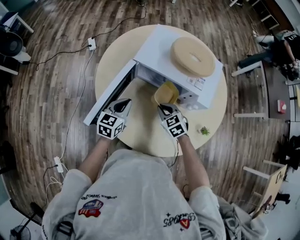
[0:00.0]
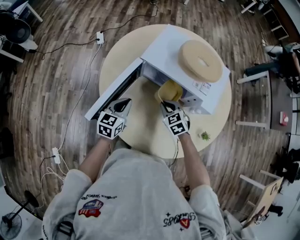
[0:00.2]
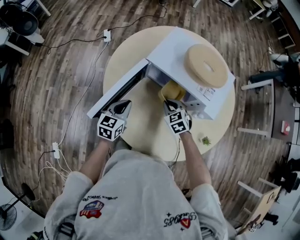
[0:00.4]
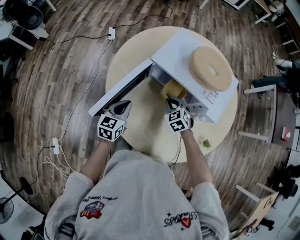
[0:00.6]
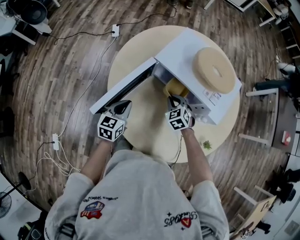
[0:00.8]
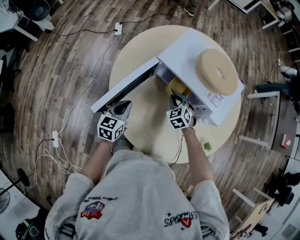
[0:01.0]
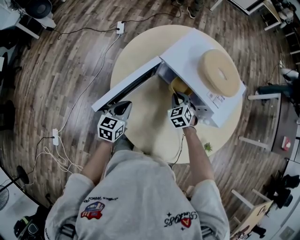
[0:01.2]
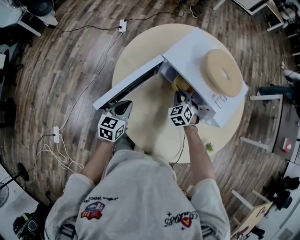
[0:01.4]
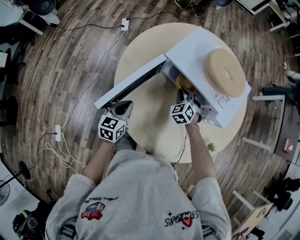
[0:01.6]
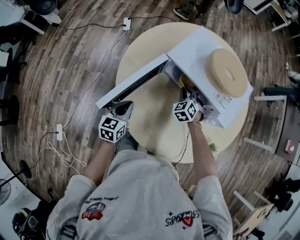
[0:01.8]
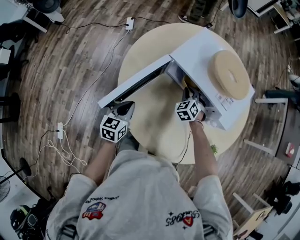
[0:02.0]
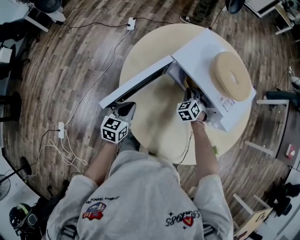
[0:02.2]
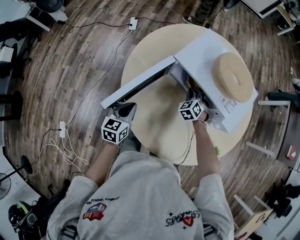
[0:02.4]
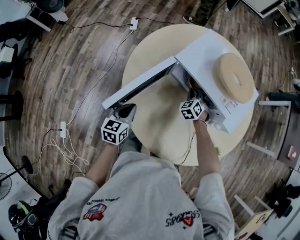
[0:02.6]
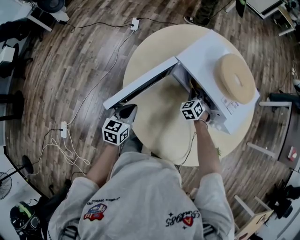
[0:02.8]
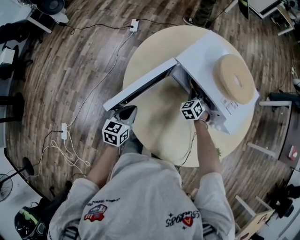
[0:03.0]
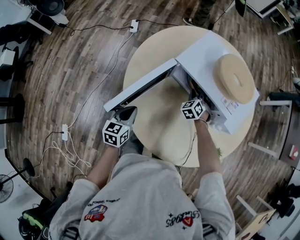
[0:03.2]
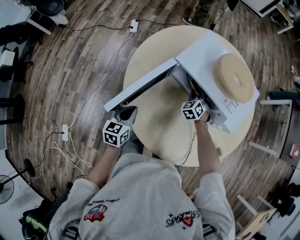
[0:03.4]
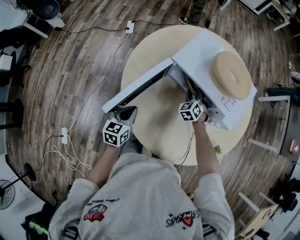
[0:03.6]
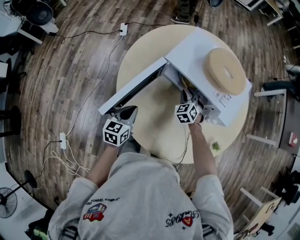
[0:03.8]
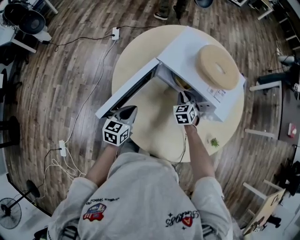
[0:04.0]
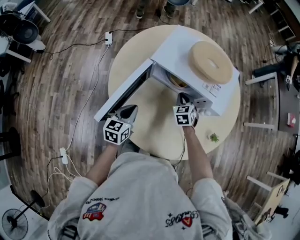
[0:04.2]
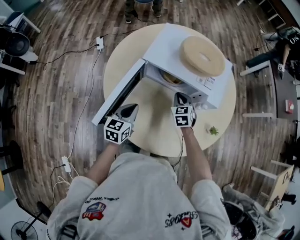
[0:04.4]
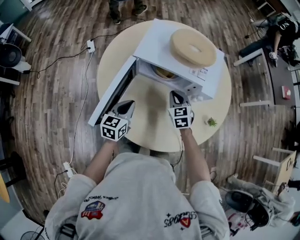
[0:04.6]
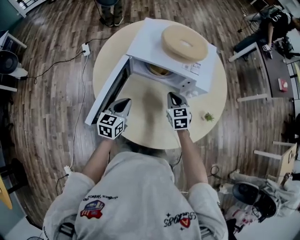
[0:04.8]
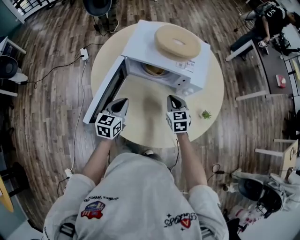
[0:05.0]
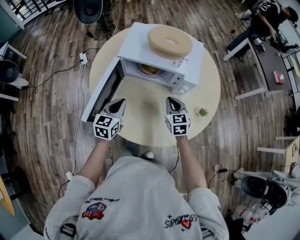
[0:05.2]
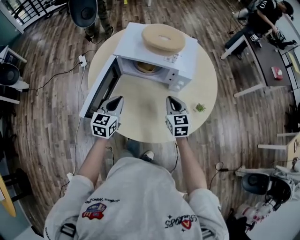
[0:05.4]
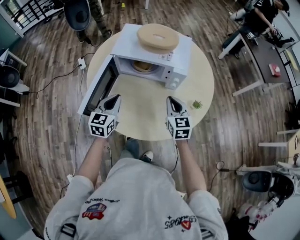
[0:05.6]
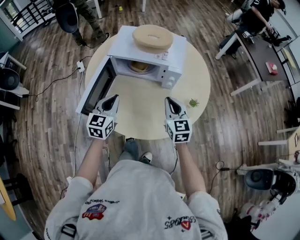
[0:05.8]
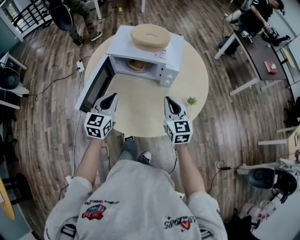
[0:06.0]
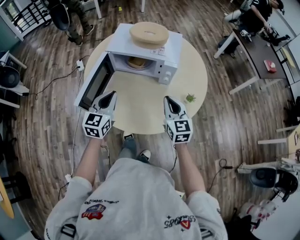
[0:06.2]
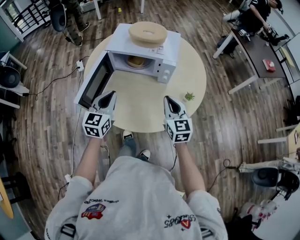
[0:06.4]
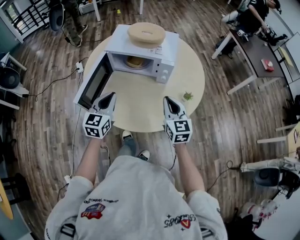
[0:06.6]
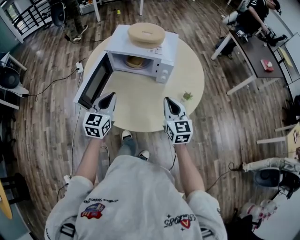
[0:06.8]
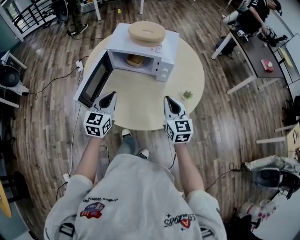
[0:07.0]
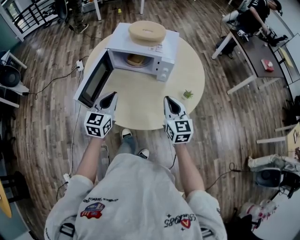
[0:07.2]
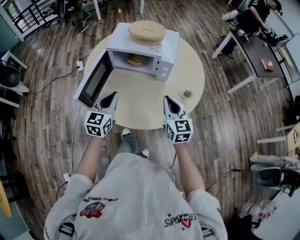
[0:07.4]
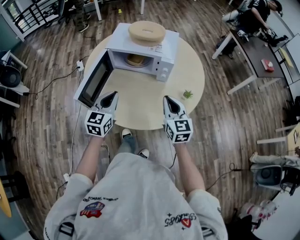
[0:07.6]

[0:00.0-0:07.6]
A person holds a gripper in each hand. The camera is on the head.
0:00.0 to 0:01.6: The left gripper heads to the left, covering approximately 10 cm, and rotates some 20 degrees. The right gripper travels forward by about 10 cm, and rotates about 30 degrees.
0:01.6 to 0:03.0: The right gripper shifts by approximately 5 cm.
0:03.0 to 0:04.6: The left gripper is displaced to the right and forward by approximately 10 cm, and swivels about 20 degrees; the right gripper is displaced backward, upward and to the right by approximately 15 cm, and changes its angle by approximately 40 degrees.
0:04.6 to 0:06.0: The right gripper shifts about 30 cm backward, upward and to the right, and changes its angle by approximately 30 degrees; the left gripper heads upward, backward and to the right, covering roughly 20 cm.
0:06.0 to 0:07.6: The grippers both shift backward by approximately 5 cm.

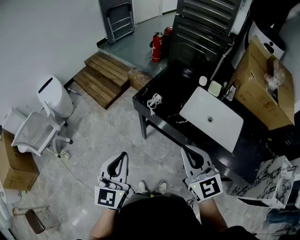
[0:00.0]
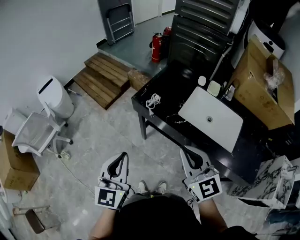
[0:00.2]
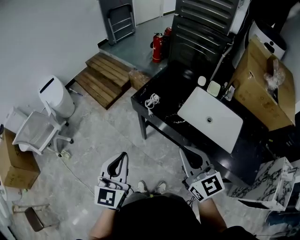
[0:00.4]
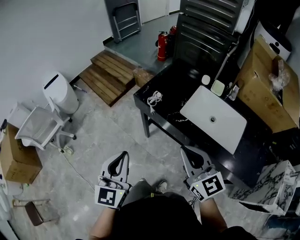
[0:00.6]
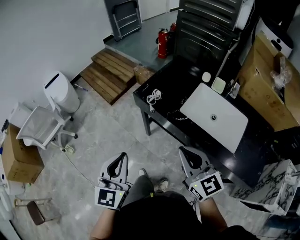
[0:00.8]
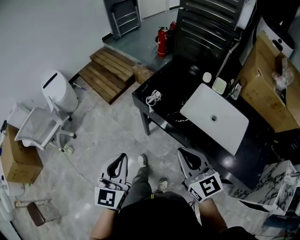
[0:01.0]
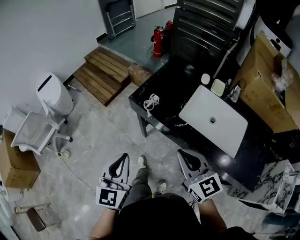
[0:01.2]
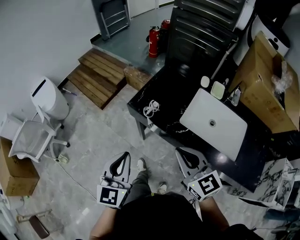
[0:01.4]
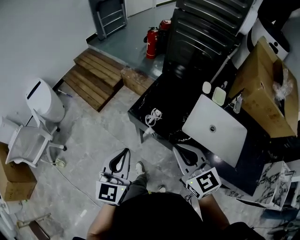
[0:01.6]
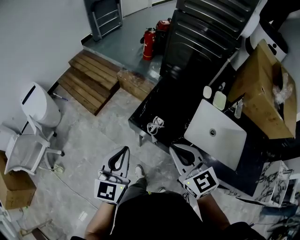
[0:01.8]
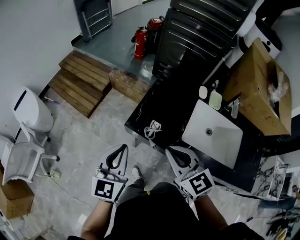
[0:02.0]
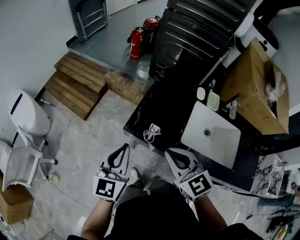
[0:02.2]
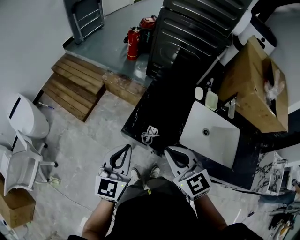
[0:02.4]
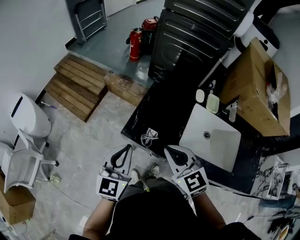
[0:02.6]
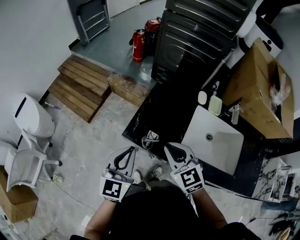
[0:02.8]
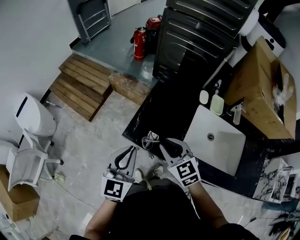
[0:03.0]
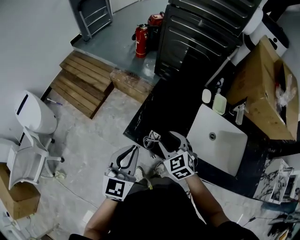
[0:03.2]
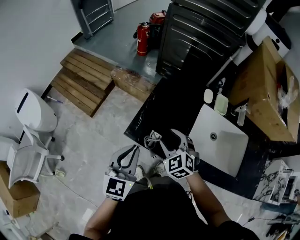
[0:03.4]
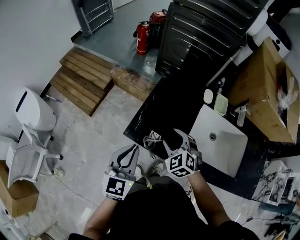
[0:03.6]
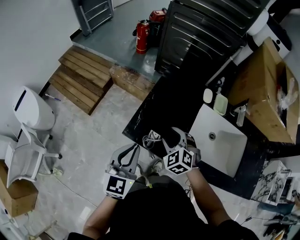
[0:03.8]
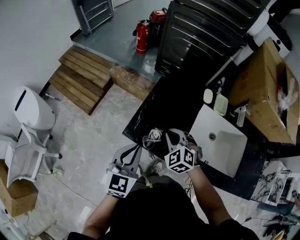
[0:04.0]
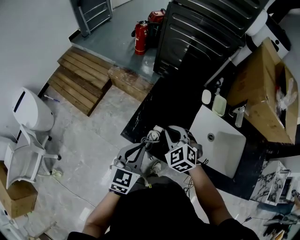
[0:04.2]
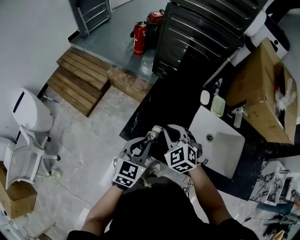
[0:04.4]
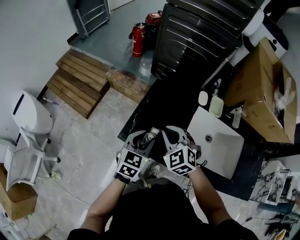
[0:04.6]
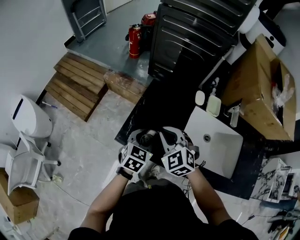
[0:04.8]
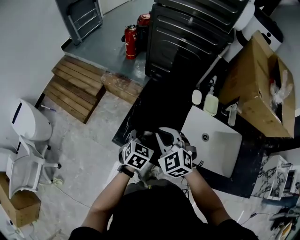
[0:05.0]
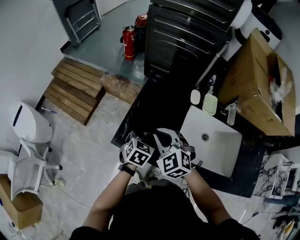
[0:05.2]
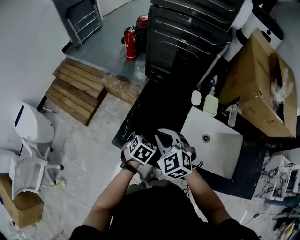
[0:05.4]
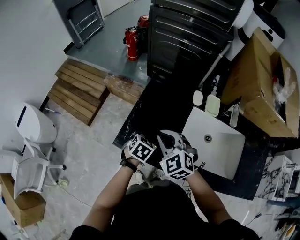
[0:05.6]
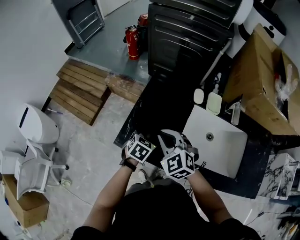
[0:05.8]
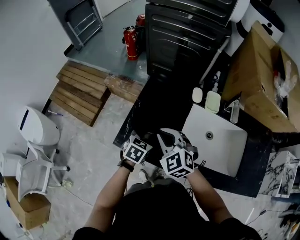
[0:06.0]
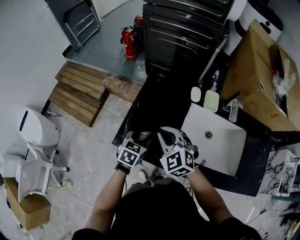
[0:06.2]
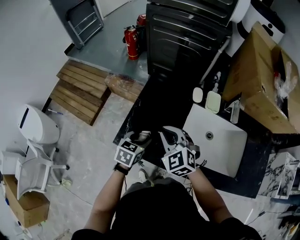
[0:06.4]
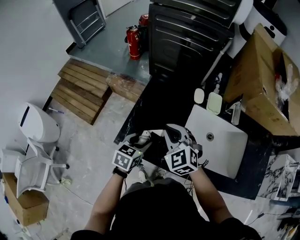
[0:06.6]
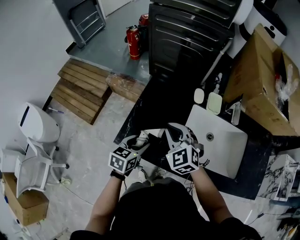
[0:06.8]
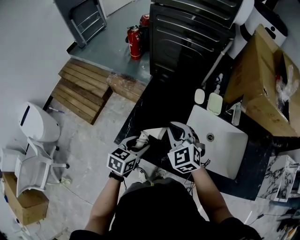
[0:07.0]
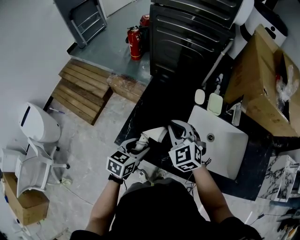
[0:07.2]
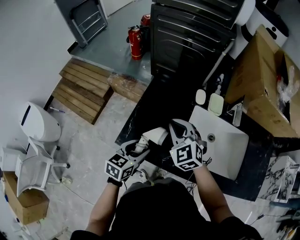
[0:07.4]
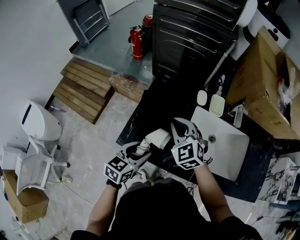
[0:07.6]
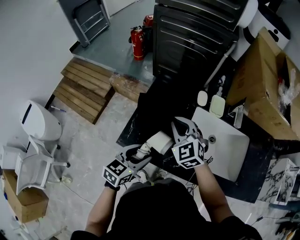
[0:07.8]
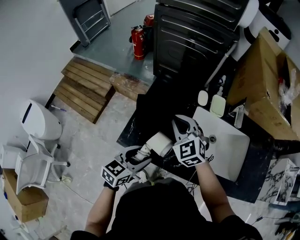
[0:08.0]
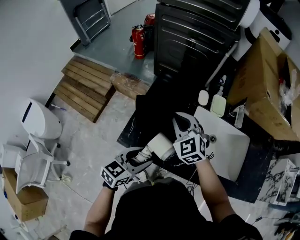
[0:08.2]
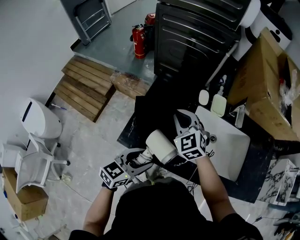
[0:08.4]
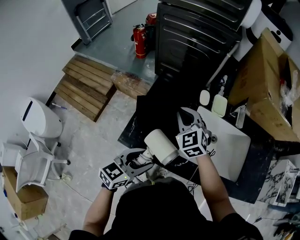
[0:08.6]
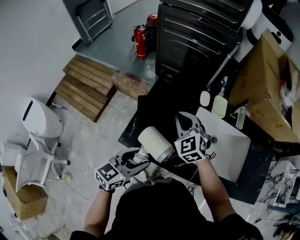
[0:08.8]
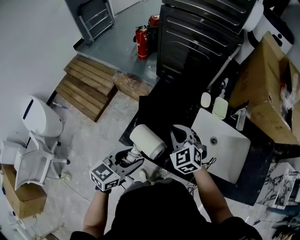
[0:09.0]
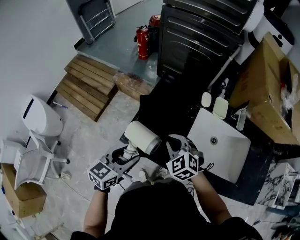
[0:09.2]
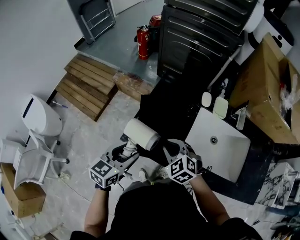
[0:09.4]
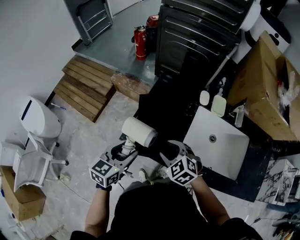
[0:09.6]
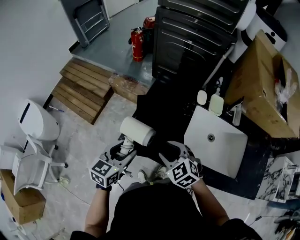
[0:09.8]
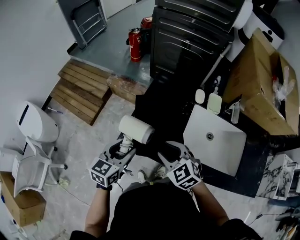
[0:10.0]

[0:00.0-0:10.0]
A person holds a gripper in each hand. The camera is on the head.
0:00.0 to 0:01.4: The left gripper moves forward, some 10 cm. Meanwhile the right gripper heads forward and downward, covering approximately 10 cm.
0:01.4 to 0:02.8: The two grippers go approximately 20 cm forward.
0:02.8 to 0:04.2: The right gripper is displaced forward and downward by about 10 cm, rotates about 30 degrees, and opens and closes again, while the left gripper heads downward, covering some 5 cm.
0:04.2 to 0:05.8: The left gripper goes approximately 15 cm downward, forward and to the right, points its fingers about 30 degrees further downward, and opens up.
0:05.8 to 0:07.2: The left gripper moves upward and backward, roughly 10 cm, and turns by some 20 degrees; the right gripper shifts by some 5 cm.
0:07.2 to 0:08.6: The right gripper heads forward, covering approximately 5 cm; the left gripper is displaced upward and backward by some 10 cm, and changes its angle by approximately 20 degrees.
0:08.6 to 0:10.0: The left gripper goes approximately 10 cm to the left, and turns by about 20 degrees. Meanwhile the right gripper is displaced backward by some 15 cm, swivels roughly 20 degrees, and opens.

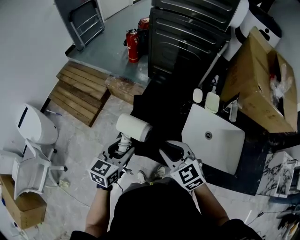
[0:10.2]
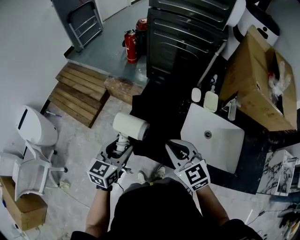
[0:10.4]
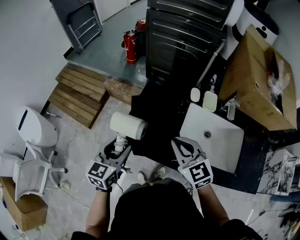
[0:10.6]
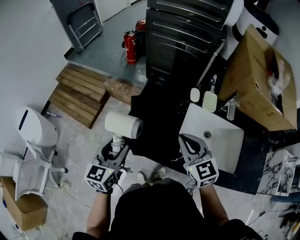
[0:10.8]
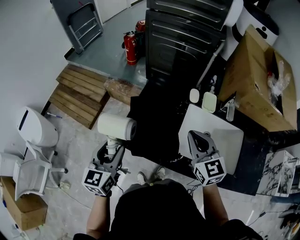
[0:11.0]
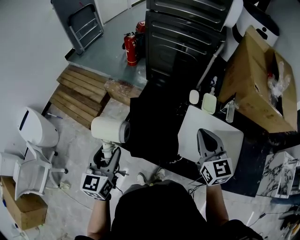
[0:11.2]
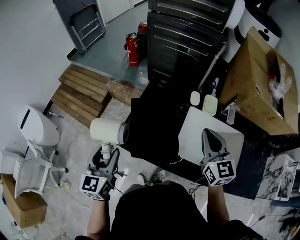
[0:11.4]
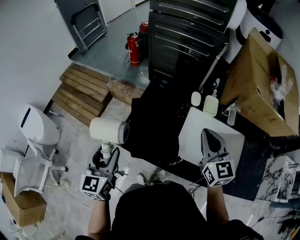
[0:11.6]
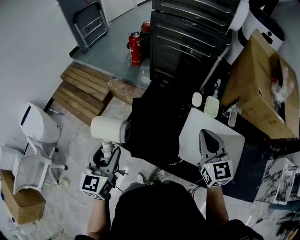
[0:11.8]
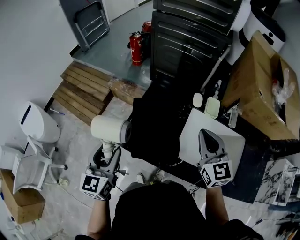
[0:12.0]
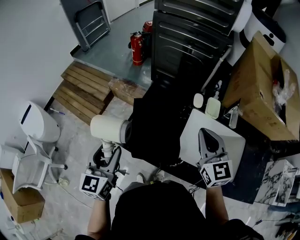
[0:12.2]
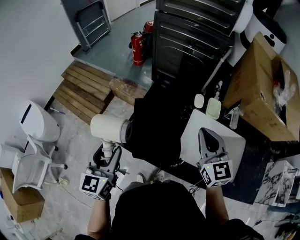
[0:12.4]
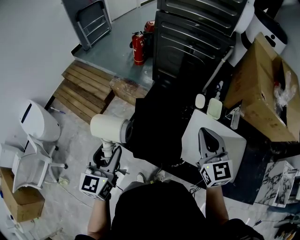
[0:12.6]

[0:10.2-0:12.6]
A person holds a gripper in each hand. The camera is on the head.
0:10.2 to 0:11.4: The right gripper shifts approximately 20 cm to the right and upward, swivels about 30 degrees, and closes. The left gripper travels upward by about 5 cm, and rotates approximately 20 degrees.
0:11.4 to 0:12.6: The grippers move only a little.

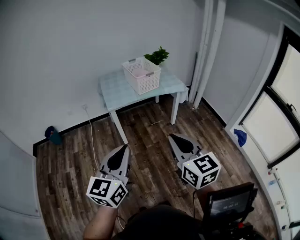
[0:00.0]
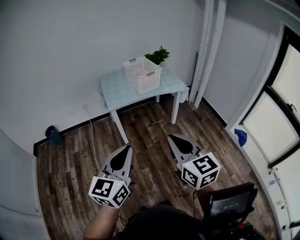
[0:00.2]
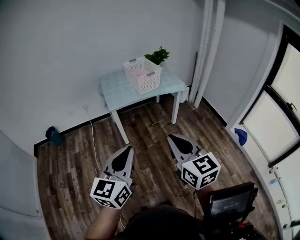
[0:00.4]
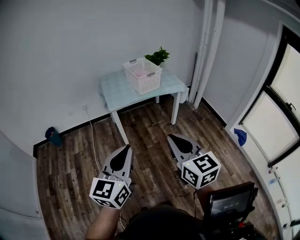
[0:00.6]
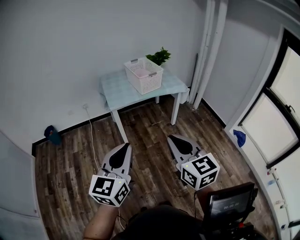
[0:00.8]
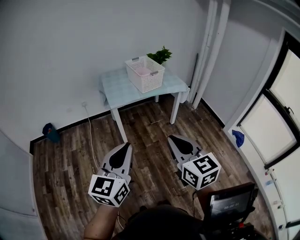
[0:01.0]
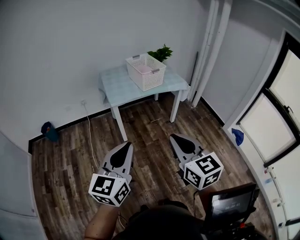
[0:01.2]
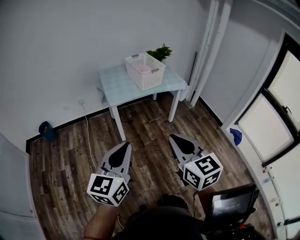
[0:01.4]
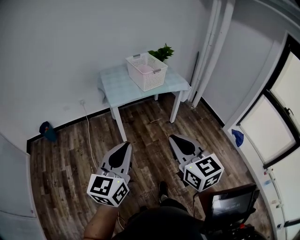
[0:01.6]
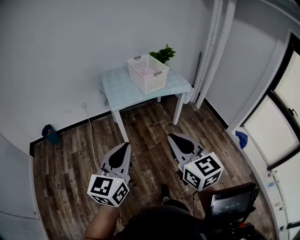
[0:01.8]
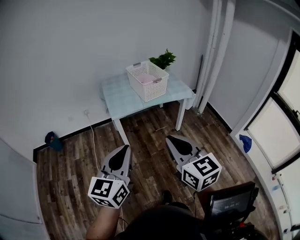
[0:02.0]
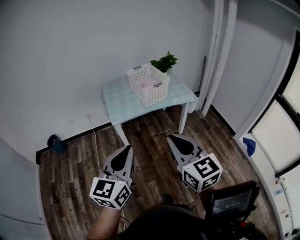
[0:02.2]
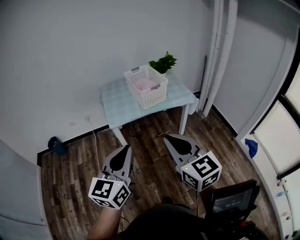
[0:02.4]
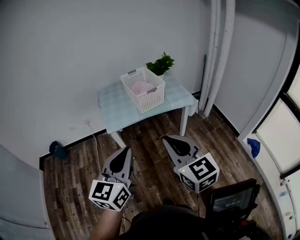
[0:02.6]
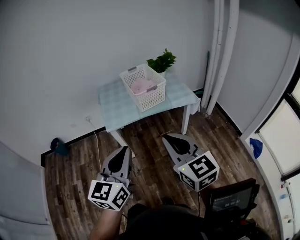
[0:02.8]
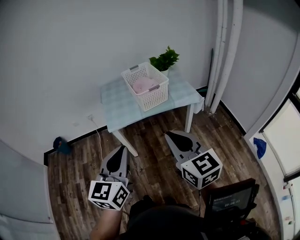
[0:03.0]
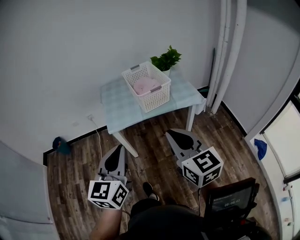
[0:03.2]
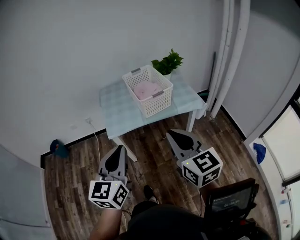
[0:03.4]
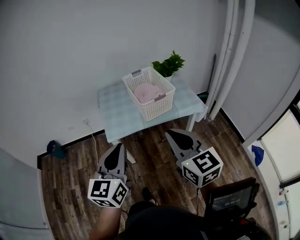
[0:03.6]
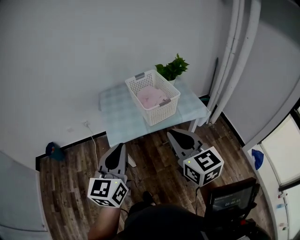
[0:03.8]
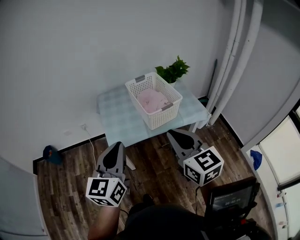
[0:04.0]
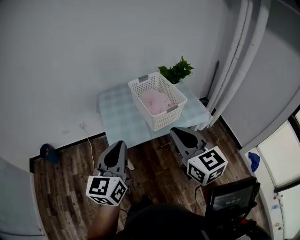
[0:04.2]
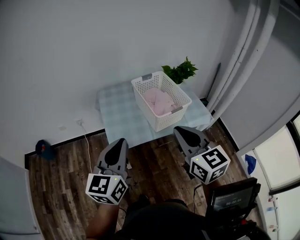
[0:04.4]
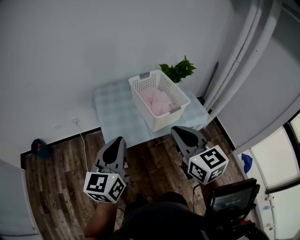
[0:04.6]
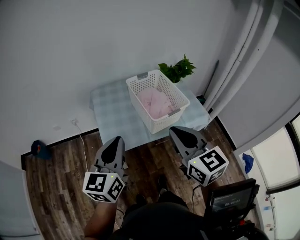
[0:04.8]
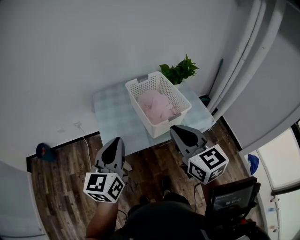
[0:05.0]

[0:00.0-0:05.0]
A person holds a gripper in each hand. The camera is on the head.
0:00.0 to 0:01.6: Both grippers move to the left, about 5 cm.
0:01.6 to 0:03.4: The two grippers go about 30 cm forward.
0:03.4 to 0:05.0: Both grippers move forward, some 25 cm.
